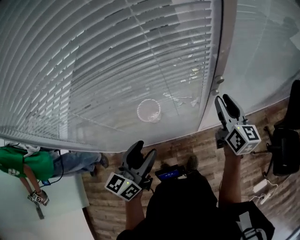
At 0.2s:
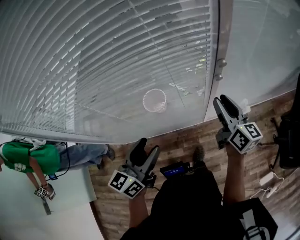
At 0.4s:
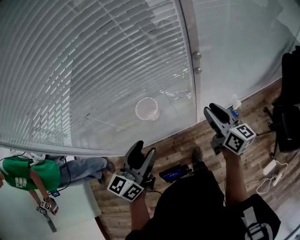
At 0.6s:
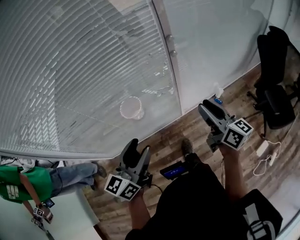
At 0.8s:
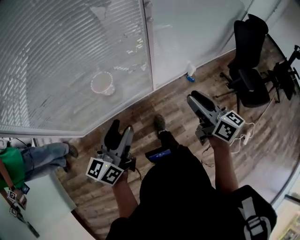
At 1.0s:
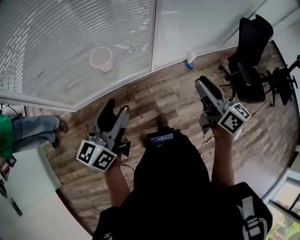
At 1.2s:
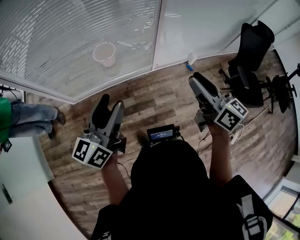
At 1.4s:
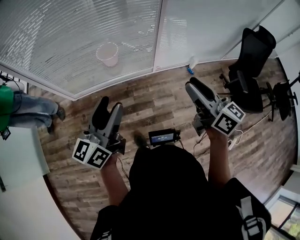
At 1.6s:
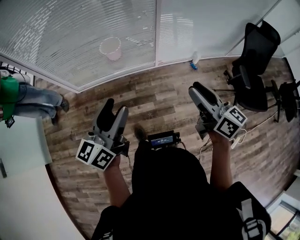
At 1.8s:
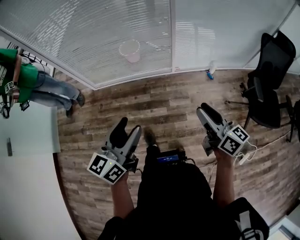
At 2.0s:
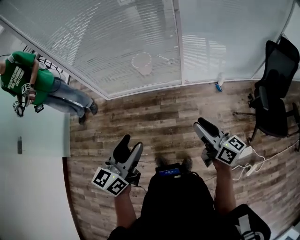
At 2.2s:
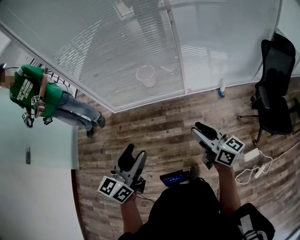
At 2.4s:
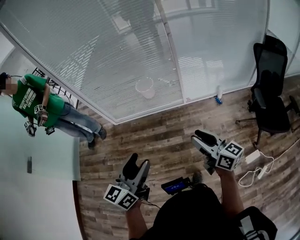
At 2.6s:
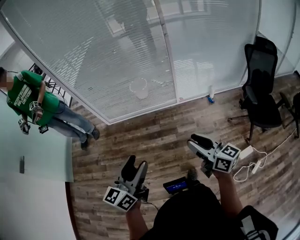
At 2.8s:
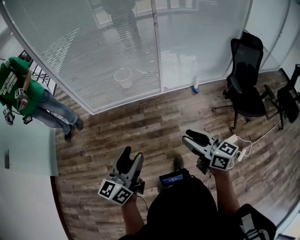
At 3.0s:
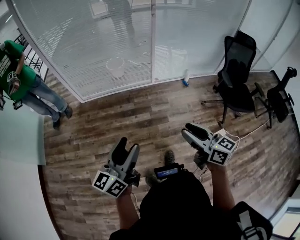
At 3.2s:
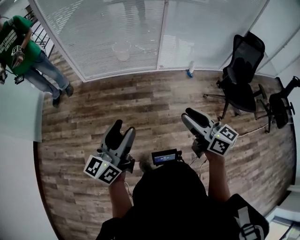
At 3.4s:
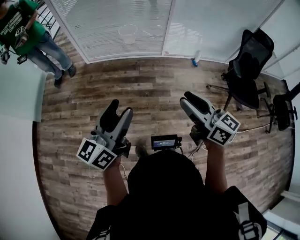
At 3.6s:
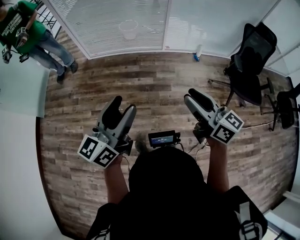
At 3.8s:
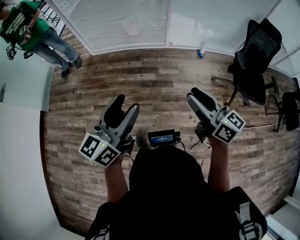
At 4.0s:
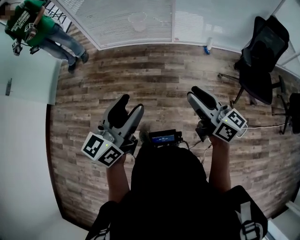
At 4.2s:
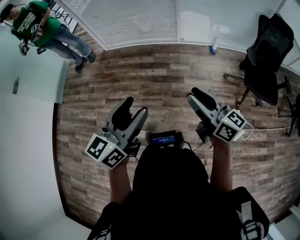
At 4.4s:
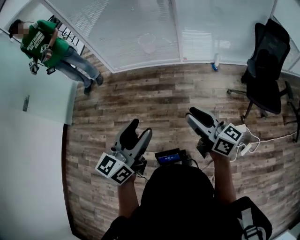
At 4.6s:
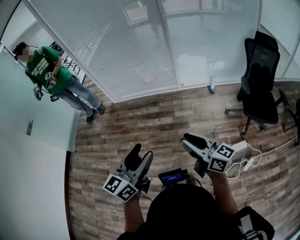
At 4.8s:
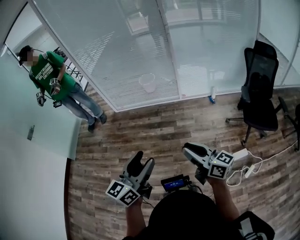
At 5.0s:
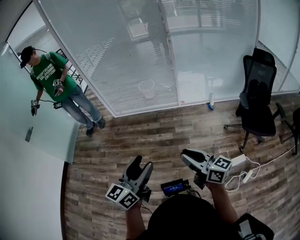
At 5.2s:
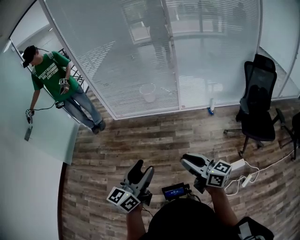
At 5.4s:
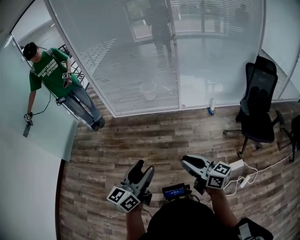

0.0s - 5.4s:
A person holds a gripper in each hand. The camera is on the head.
0.0s - 1.4s: Both grippers travel together backward, roughly 40 cm. The right gripper rotates approximately 20 degrees.
1.4s - 2.8s: The grippers both shift backward by some 35 cm.
2.8s - 4.0s: The two grippers go approximately 15 cm backward and to the right.
4.0s - 5.4s: The right gripper moves to the left, roughly 10 cm; the left gripper heads to the left, covering some 5 cm.

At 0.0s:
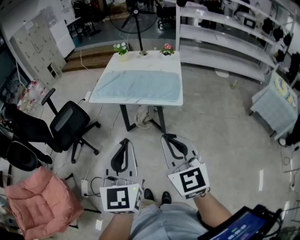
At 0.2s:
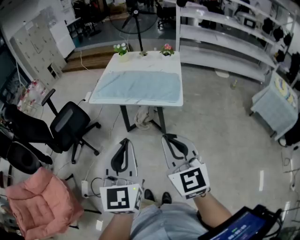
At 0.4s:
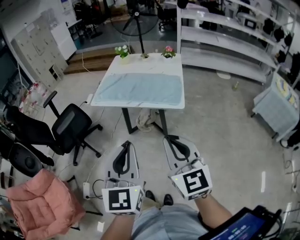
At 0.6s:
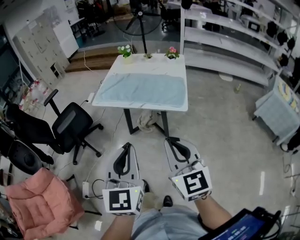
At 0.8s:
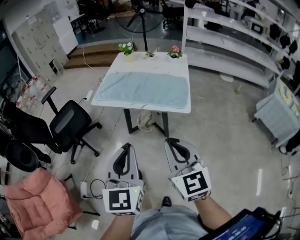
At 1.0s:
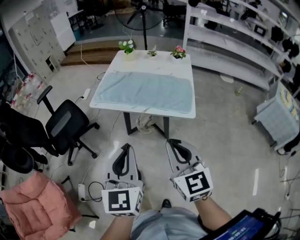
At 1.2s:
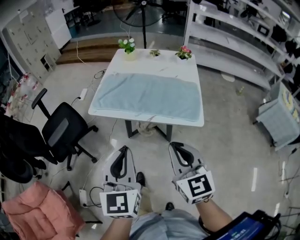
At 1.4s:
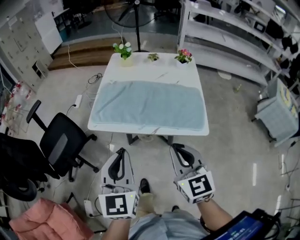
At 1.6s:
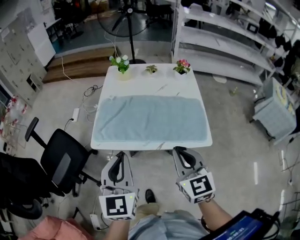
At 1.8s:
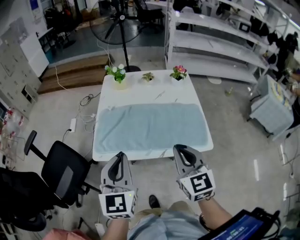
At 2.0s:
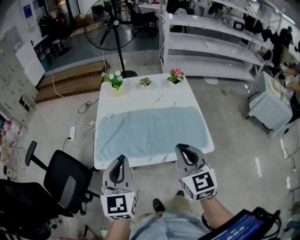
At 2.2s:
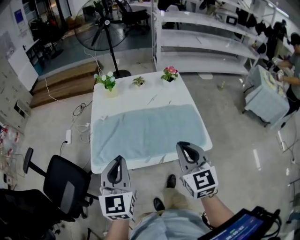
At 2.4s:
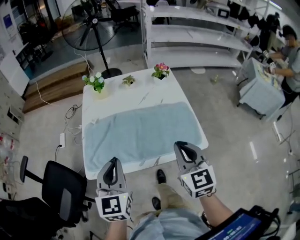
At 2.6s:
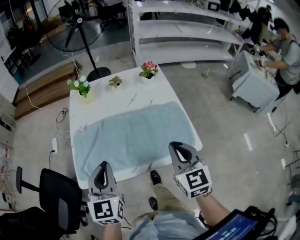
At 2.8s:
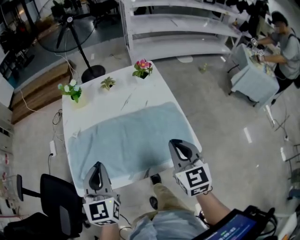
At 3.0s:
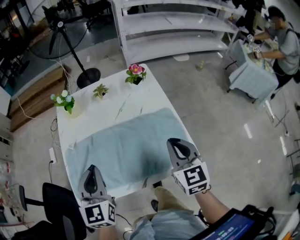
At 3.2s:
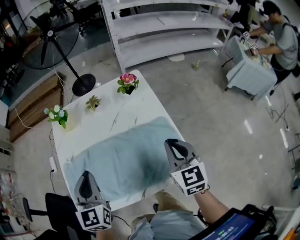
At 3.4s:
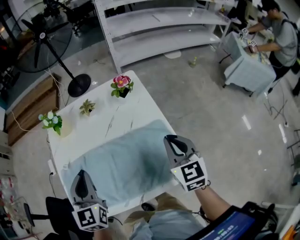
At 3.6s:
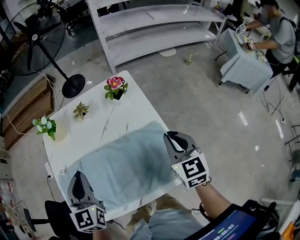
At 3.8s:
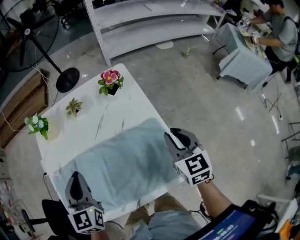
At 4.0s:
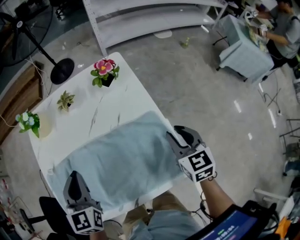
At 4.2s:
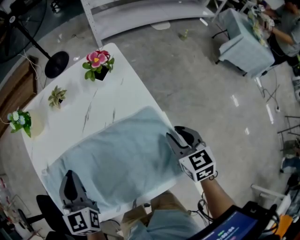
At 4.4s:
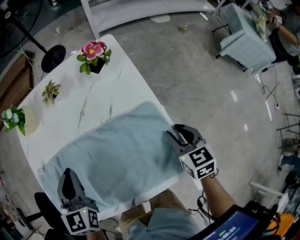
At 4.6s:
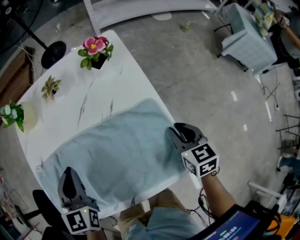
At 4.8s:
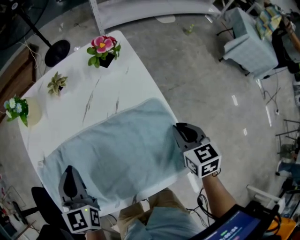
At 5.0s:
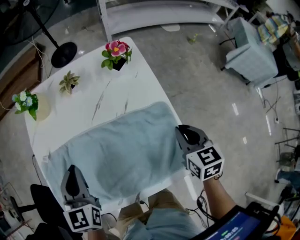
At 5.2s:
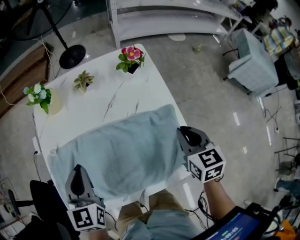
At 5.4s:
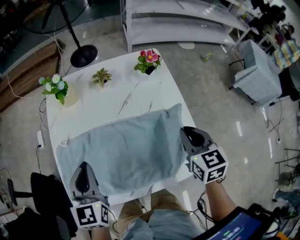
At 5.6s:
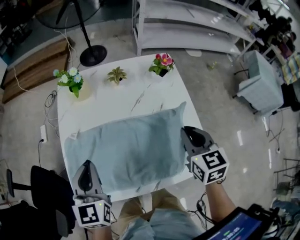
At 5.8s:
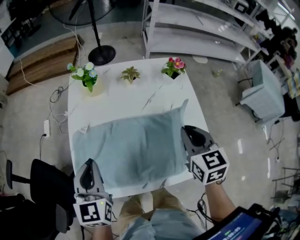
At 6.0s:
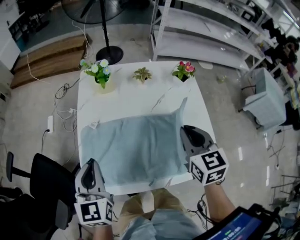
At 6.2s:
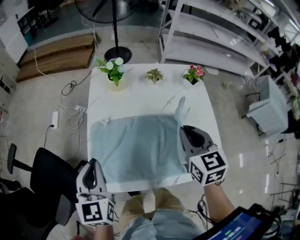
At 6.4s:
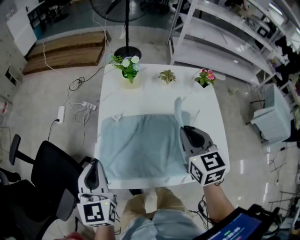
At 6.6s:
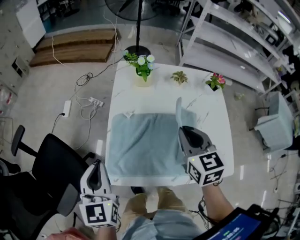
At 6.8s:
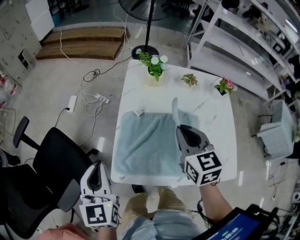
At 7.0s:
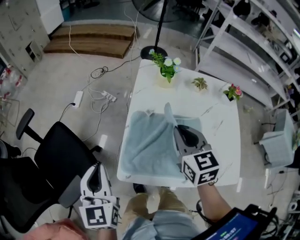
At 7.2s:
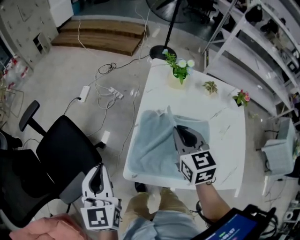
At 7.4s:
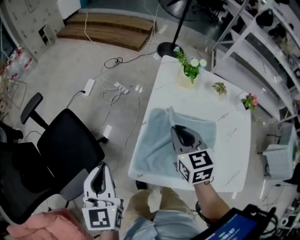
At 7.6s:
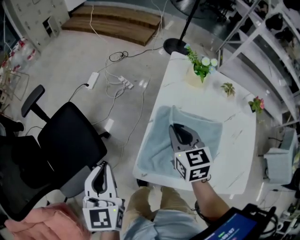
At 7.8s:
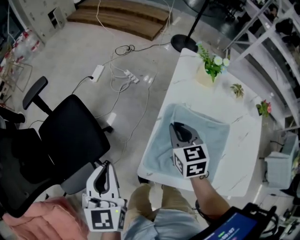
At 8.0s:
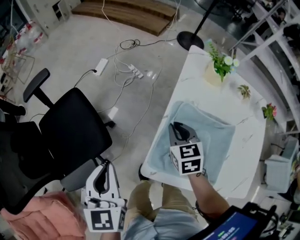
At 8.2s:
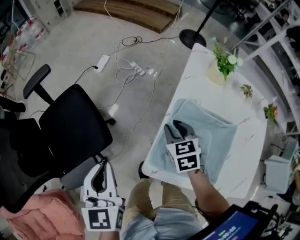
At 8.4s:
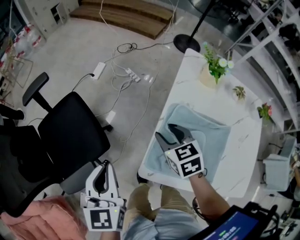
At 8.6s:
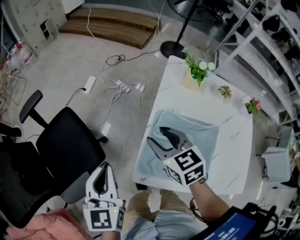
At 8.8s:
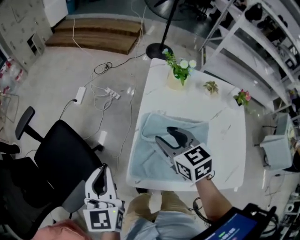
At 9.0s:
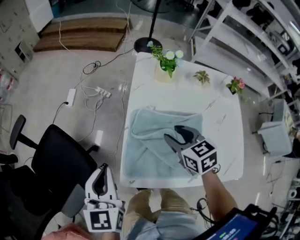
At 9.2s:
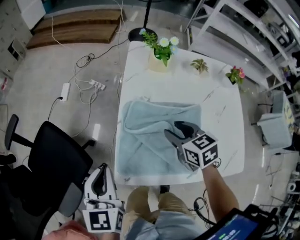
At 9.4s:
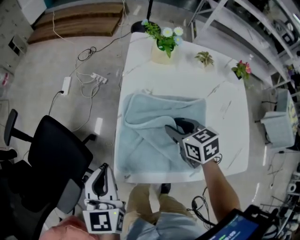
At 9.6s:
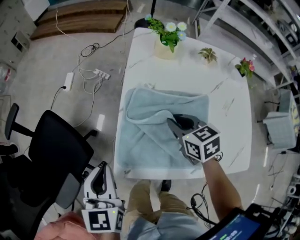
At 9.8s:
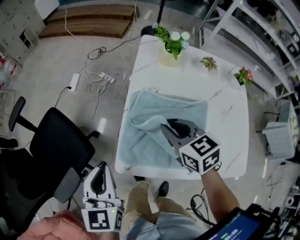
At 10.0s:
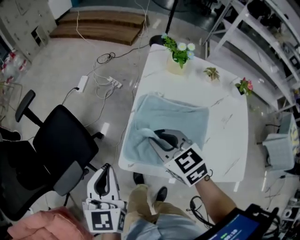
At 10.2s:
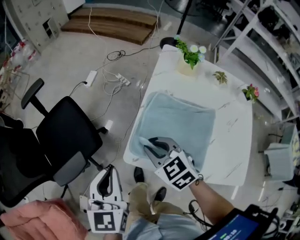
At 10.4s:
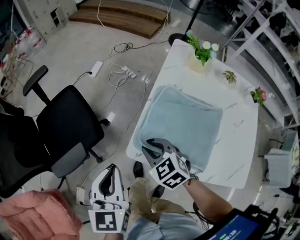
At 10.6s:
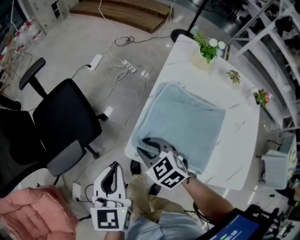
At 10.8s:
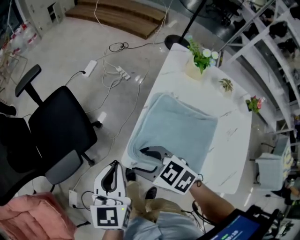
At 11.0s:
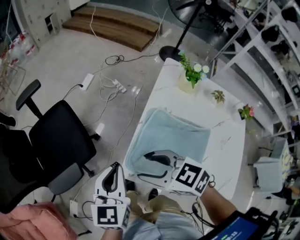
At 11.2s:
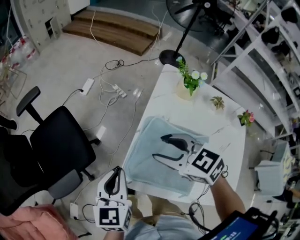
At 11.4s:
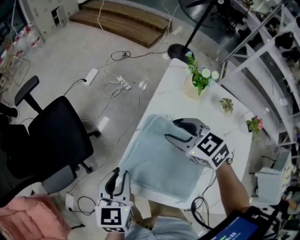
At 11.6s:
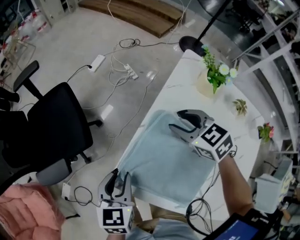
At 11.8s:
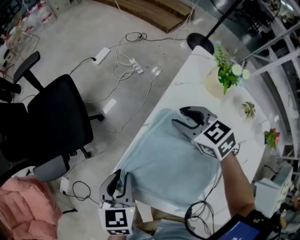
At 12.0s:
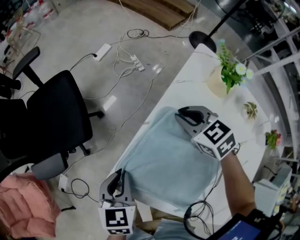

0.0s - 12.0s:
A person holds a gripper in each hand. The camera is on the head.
0.0s - 1.6s: The grippers both shift forward by about 35 cm.
1.6s - 3.0s: The left gripper moves forward, approximately 25 cm; the right gripper shifts approximately 25 cm forward and to the right, and turns by about 20 degrees.
3.0s - 4.4s: The left gripper is displaced forward and downward by some 15 cm, while the right gripper travels downward, to the right and forward by approximately 20 cm, turns by some 20 degrees, and opens its fingers.
4.4s - 6.0s: The left gripper heads to the left and backward, covering approximately 20 cm, while the right gripper goes about 30 cm to the left and upward, and closes.
6.0s - 7.6s: The two grippers go about 30 cm to the left. The right gripper rotates some 30 degrees. Meanwhile the left gripper swivels about 20 degrees.
7.6s - 9.0s: The grippers both shift to the right by some 10 cm. The right gripper opens up.
9.0s - 10.4s: The left gripper shifts roughly 10 cm backward. Meanwhile the right gripper shifts about 20 cm to the left and backward, turns by about 40 degrees, and closes.
10.4s - 12.0s: The right gripper travels to the right and forward by some 25 cm, and opens, then closes again; the left gripper is displaced downward and to the right by approximately 15 cm, turns by roughly 20 degrees, and opens and closes again.

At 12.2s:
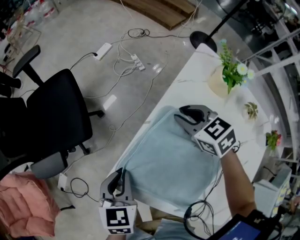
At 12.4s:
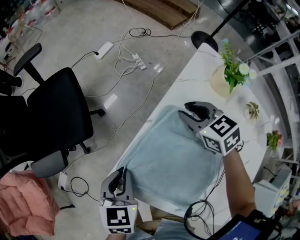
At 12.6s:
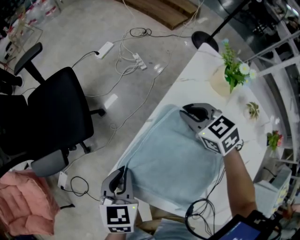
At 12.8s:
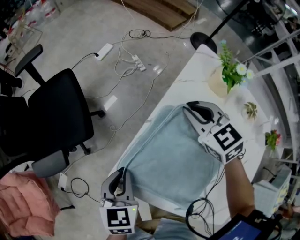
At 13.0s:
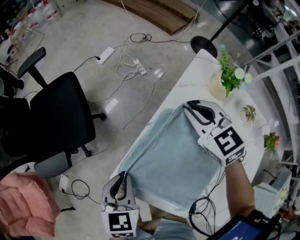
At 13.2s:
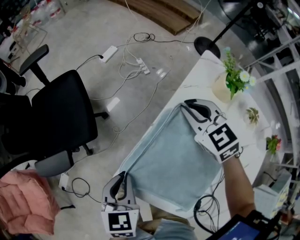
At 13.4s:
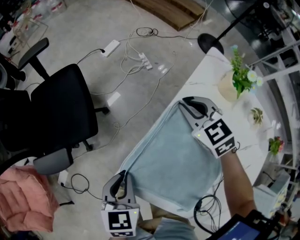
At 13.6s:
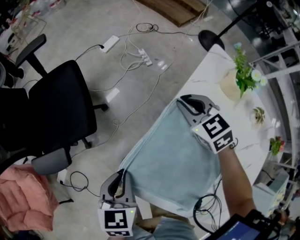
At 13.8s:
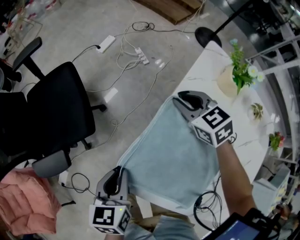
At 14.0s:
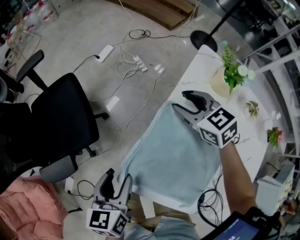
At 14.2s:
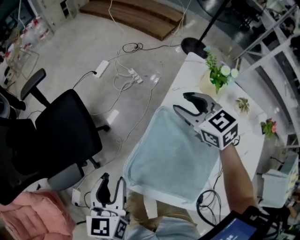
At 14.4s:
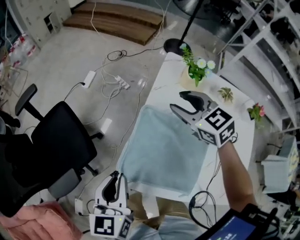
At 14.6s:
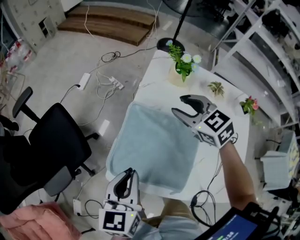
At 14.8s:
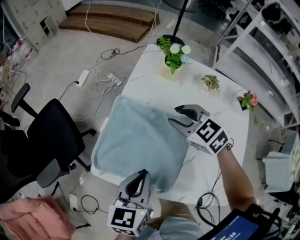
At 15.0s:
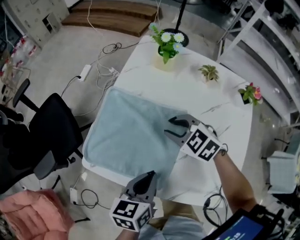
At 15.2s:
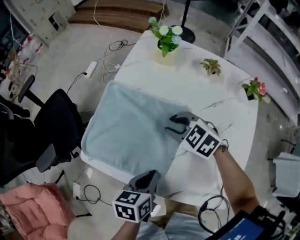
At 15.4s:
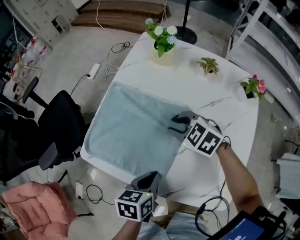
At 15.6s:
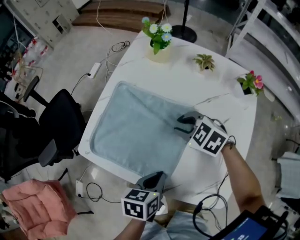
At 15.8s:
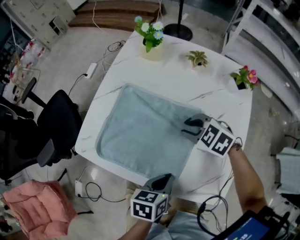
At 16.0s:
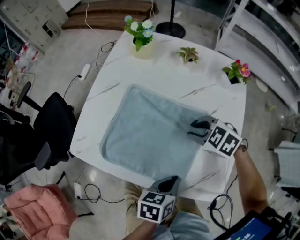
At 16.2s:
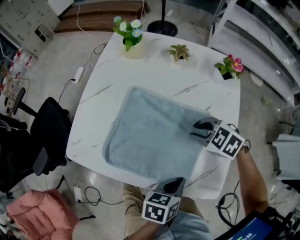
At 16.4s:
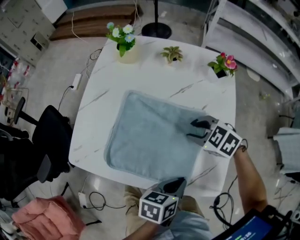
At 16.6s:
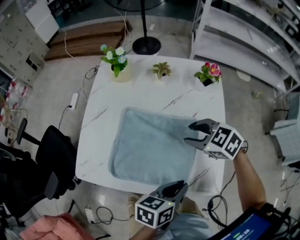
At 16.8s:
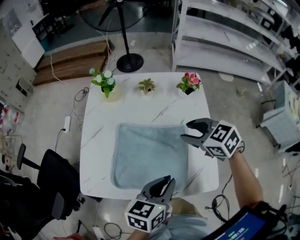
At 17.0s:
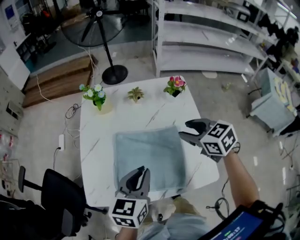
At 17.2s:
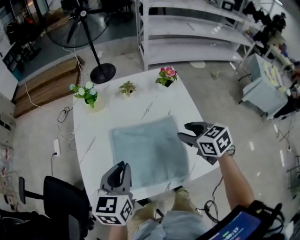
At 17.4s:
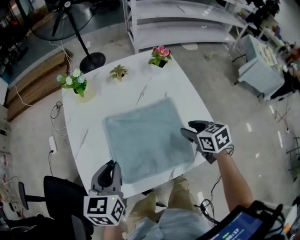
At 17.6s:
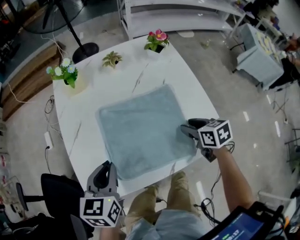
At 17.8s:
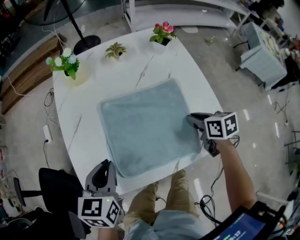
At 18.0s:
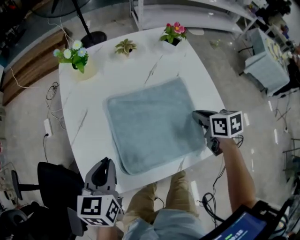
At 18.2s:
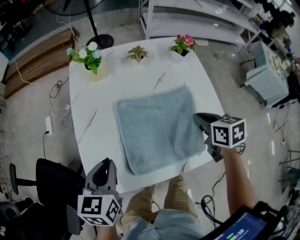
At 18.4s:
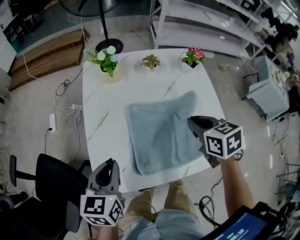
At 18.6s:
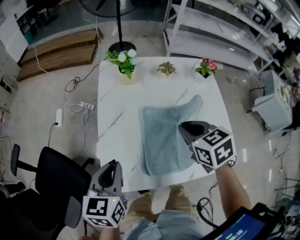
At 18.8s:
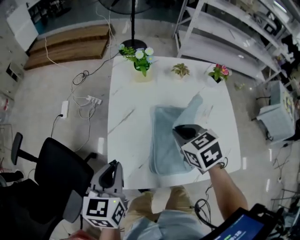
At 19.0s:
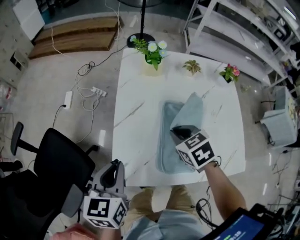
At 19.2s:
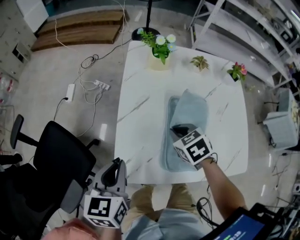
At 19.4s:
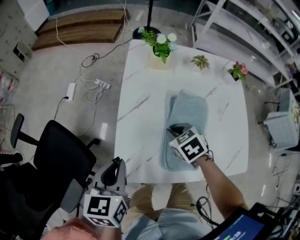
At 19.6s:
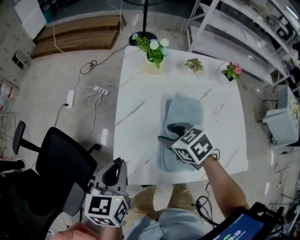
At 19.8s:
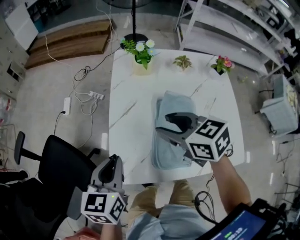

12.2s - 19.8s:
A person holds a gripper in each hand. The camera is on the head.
12.2s - 13.8s: The right gripper heads forward, covering about 5 cm, and reaches some 10 cm upward, then returns.
13.8s - 15.2s: The left gripper goes some 30 cm to the right and backward, changes its angle by about 30 degrees, and opens and closes again, while the right gripper moves backward and to the right, some 25 cm.
15.2s - 16.8s: Both grippers move to the right and upward, approximately 20 cm. The left gripper changes its angle by about 30 degrees; the right gripper turns by about 30 degrees.
16.8s - 18.2s: The right gripper is displaced backward and downward by about 10 cm, twists approximately 40 degrees clockwise, seen from behind, and closes its fingers; the left gripper moves to the left, approximately 30 cm.
18.2s - 19.8s: The right gripper goes up and down, roughly 15 cm each way, reversing 2 times, changes its angle by roughly 40 degrees, and opens its fingers. Meanwhile the left gripper changes place by approximately 10 cm.
